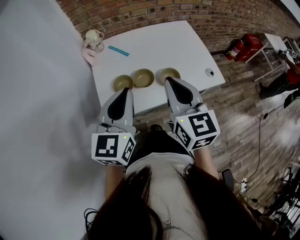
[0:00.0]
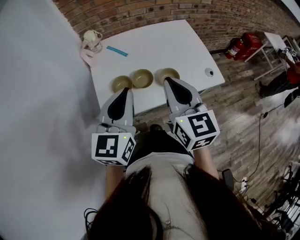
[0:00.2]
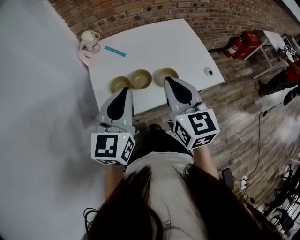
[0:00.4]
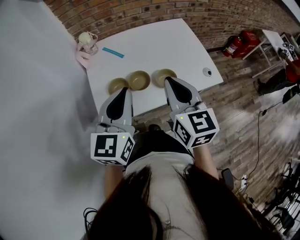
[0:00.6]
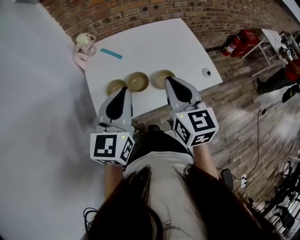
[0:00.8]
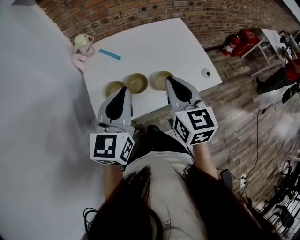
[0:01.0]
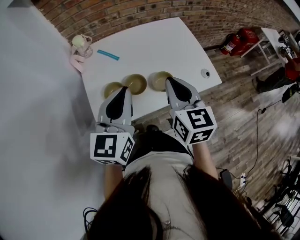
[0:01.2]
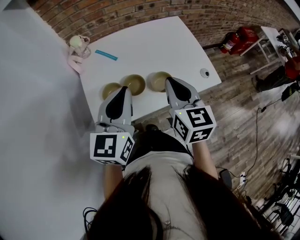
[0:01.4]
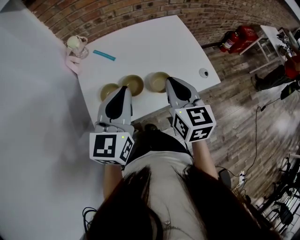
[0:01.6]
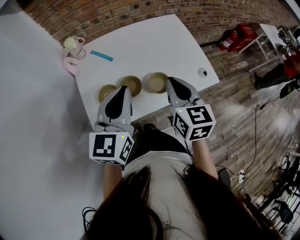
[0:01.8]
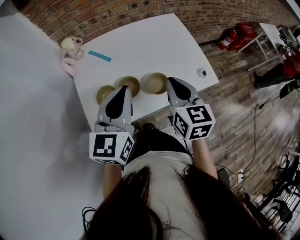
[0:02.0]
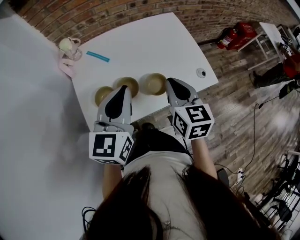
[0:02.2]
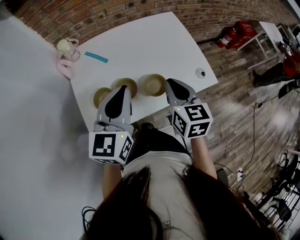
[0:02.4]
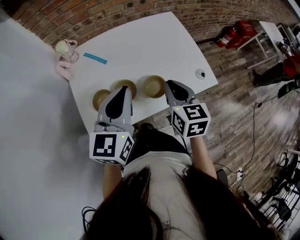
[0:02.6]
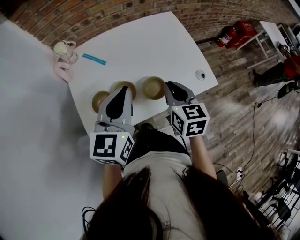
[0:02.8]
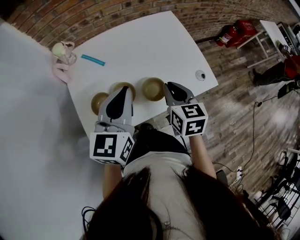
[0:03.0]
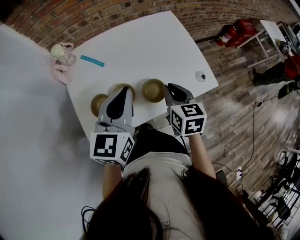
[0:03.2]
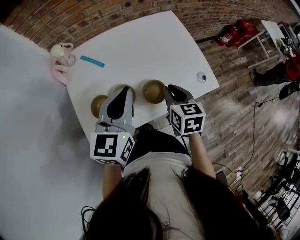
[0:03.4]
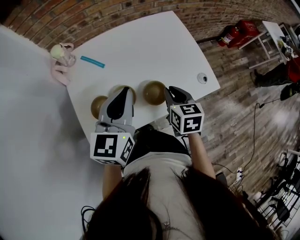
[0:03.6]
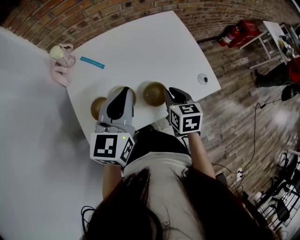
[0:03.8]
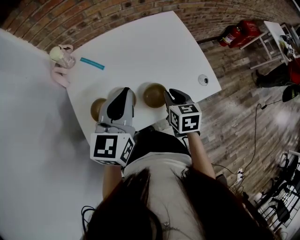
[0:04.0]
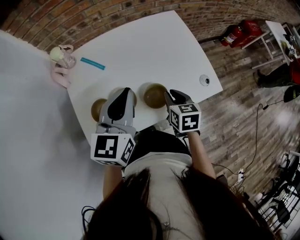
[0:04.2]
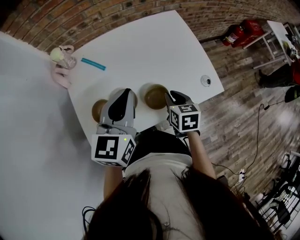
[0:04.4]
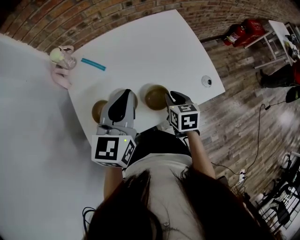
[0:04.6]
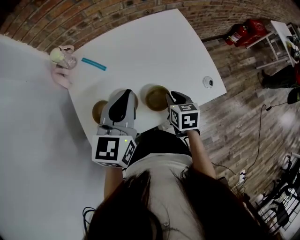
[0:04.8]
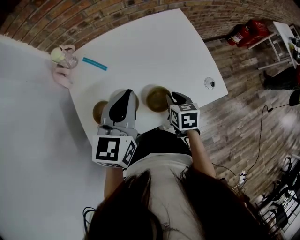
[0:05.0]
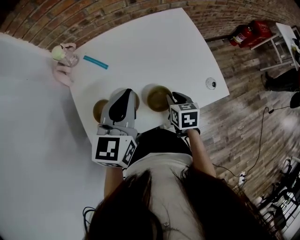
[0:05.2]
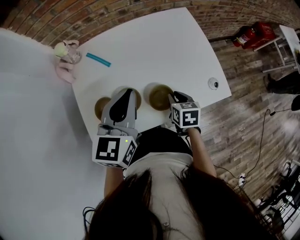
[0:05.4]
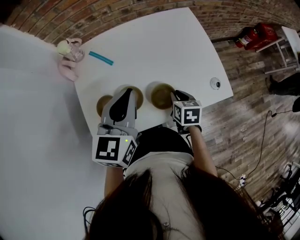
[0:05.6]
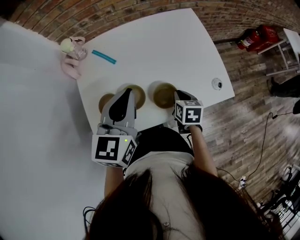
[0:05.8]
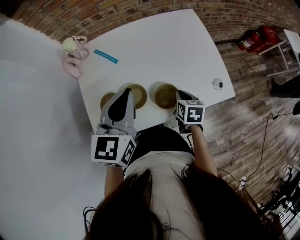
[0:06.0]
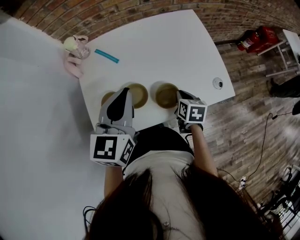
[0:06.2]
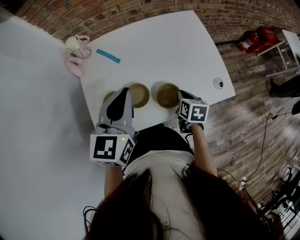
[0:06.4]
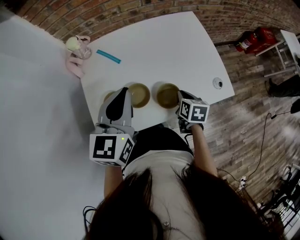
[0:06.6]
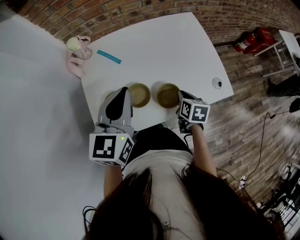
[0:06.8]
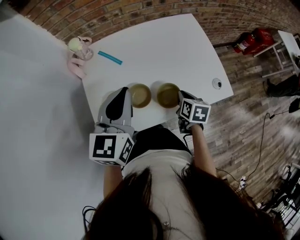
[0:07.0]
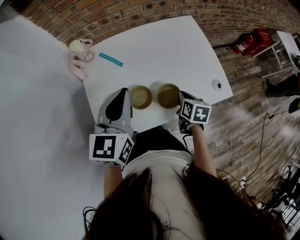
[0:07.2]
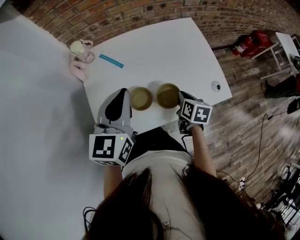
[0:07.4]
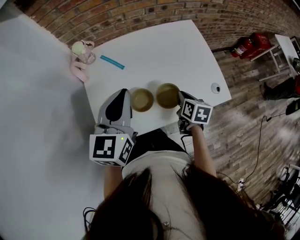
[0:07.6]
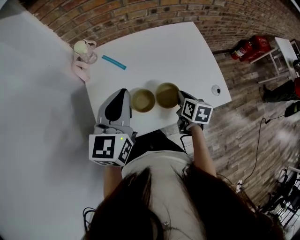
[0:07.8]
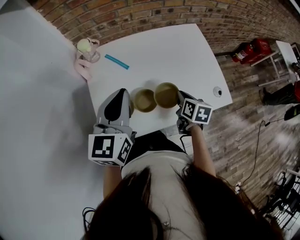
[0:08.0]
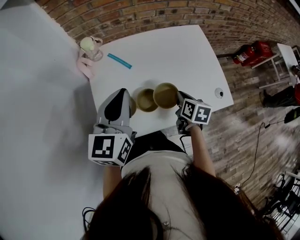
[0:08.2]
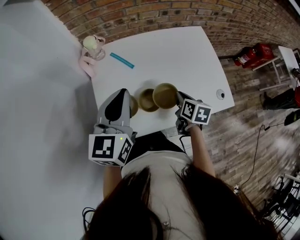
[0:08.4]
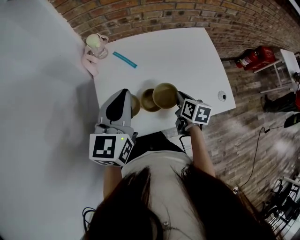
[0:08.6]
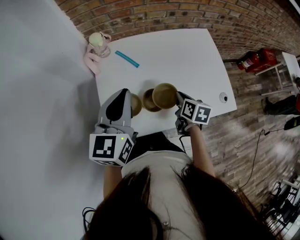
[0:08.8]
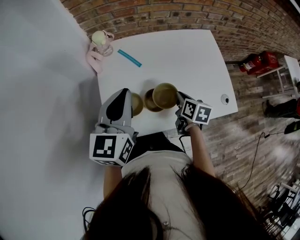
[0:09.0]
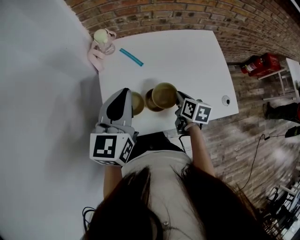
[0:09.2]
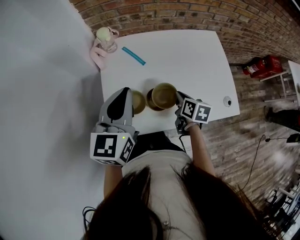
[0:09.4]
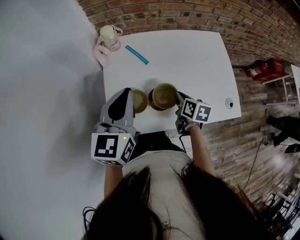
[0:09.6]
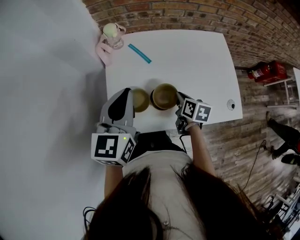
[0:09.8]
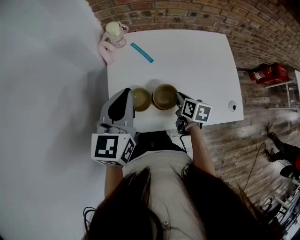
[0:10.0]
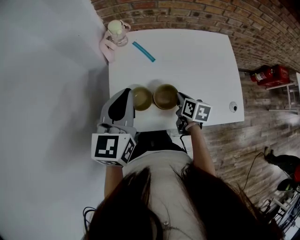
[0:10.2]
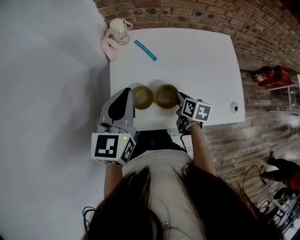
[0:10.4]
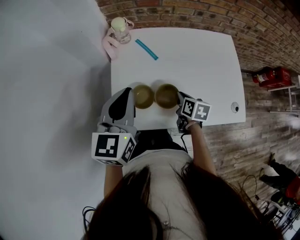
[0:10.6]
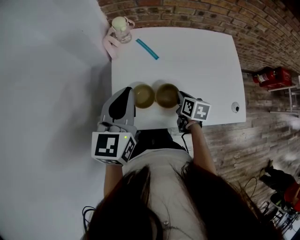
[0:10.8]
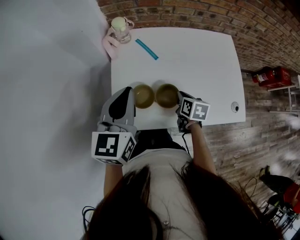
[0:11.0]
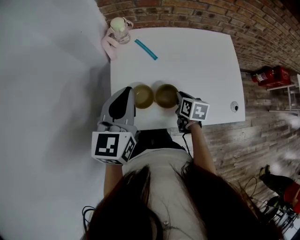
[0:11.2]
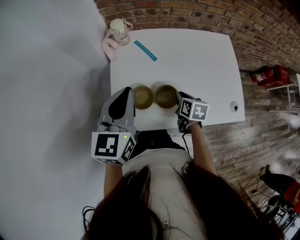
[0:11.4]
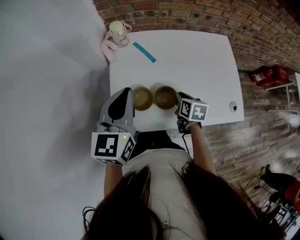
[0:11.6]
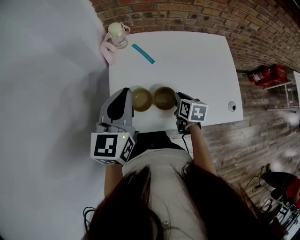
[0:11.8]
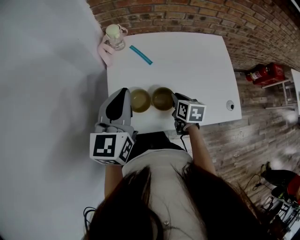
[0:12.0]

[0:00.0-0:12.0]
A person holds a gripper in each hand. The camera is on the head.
0:00.0 to 0:01.6: The left gripper goes approximately 10 cm forward. The right gripper goes approximately 10 cm forward, downward and to the right.
0:01.6 to 0:03.0: The left gripper is displaced forward by about 5 cm, while the right gripper heads downward and forward, covering about 10 cm.
0:03.0 to 0:04.4: The right gripper shifts approximately 10 cm downward.
0:04.4 to 0:06.0: The right gripper is displaced downward by roughly 5 cm.
0:06.0 to 0:07.6: The left gripper moves to the left, about 5 cm, while the right gripper goes about 5 cm upward.
0:07.6 to 0:09.0: The two grippers go about 10 cm to the left.
0:09.0 to 0:10.4: The right gripper shifts by approximately 5 cm.
0:10.4 to 0:12.0: The grippers make only small movements.

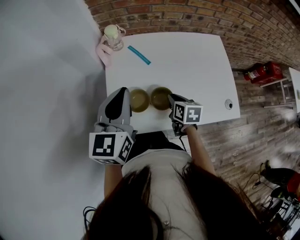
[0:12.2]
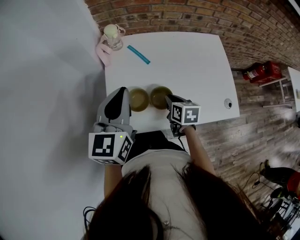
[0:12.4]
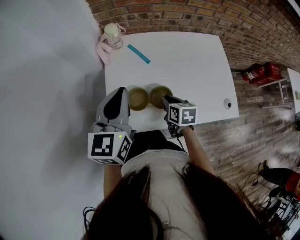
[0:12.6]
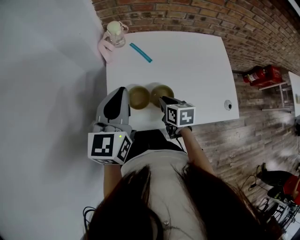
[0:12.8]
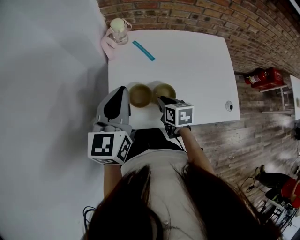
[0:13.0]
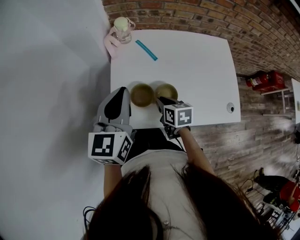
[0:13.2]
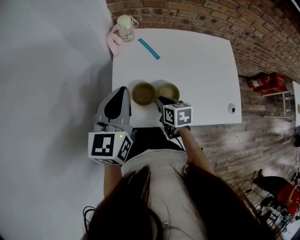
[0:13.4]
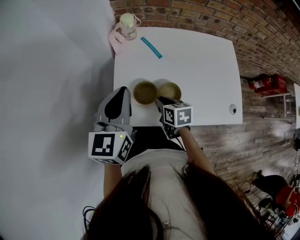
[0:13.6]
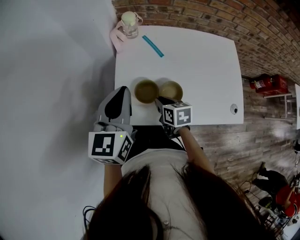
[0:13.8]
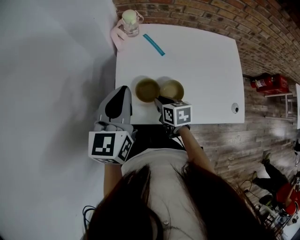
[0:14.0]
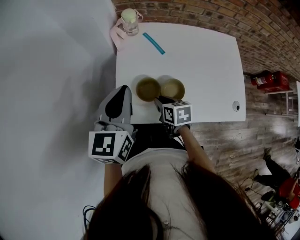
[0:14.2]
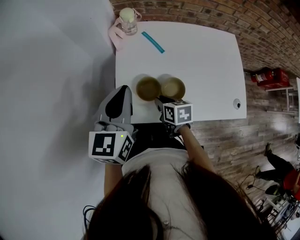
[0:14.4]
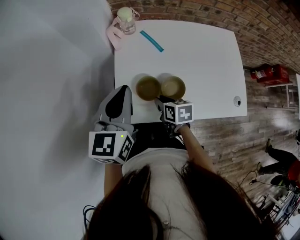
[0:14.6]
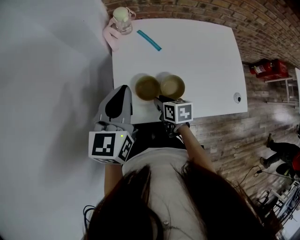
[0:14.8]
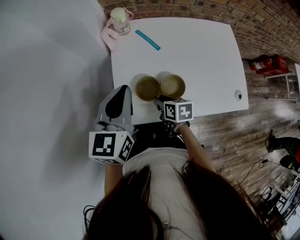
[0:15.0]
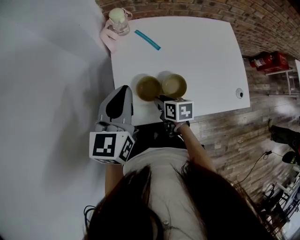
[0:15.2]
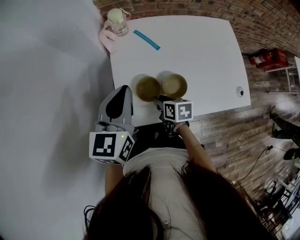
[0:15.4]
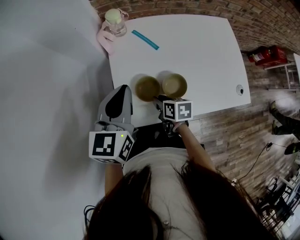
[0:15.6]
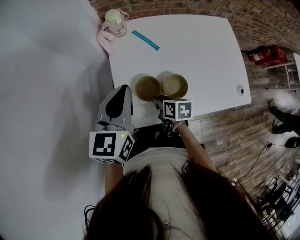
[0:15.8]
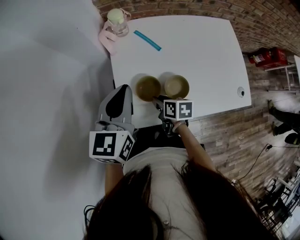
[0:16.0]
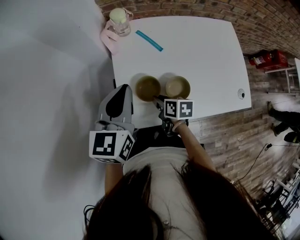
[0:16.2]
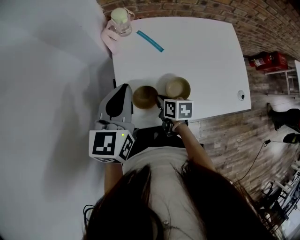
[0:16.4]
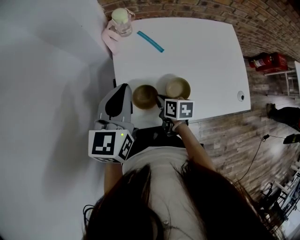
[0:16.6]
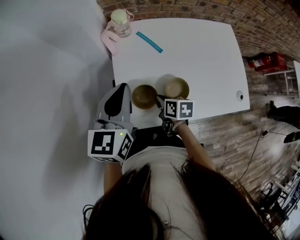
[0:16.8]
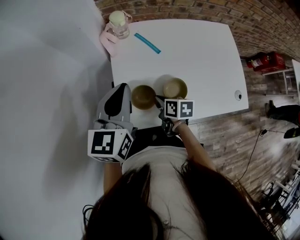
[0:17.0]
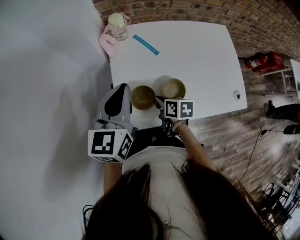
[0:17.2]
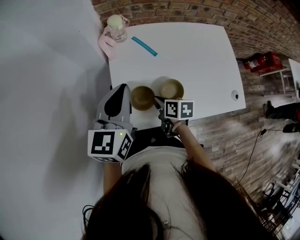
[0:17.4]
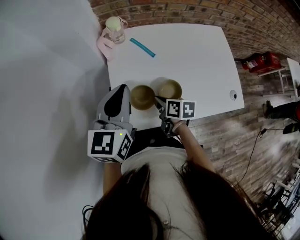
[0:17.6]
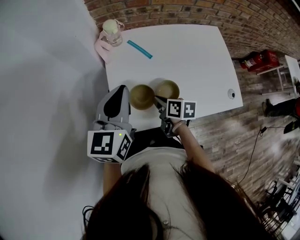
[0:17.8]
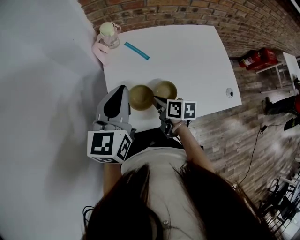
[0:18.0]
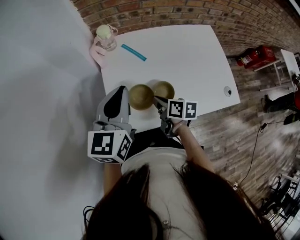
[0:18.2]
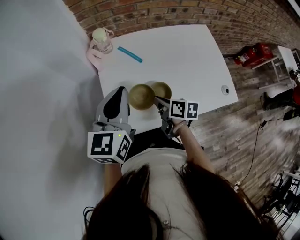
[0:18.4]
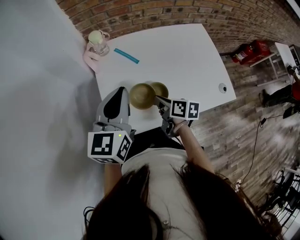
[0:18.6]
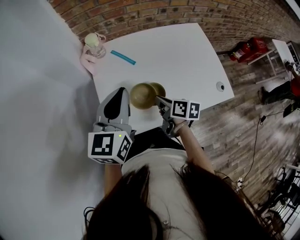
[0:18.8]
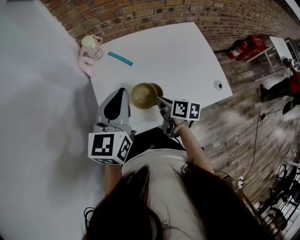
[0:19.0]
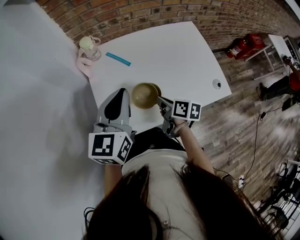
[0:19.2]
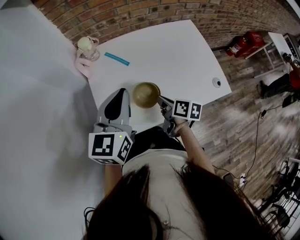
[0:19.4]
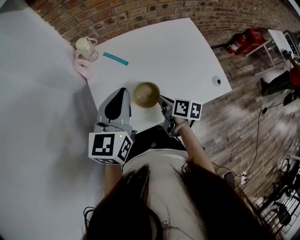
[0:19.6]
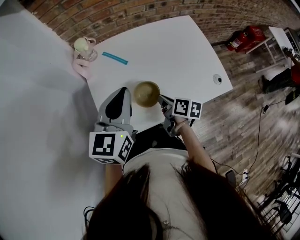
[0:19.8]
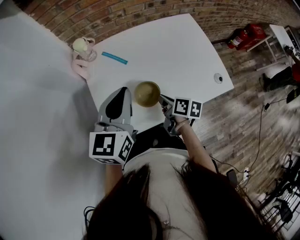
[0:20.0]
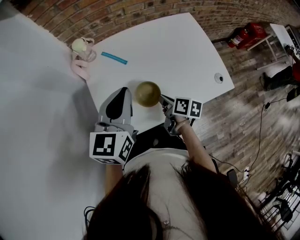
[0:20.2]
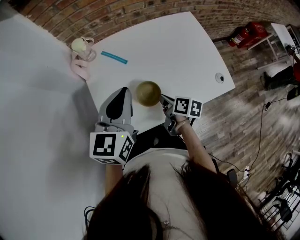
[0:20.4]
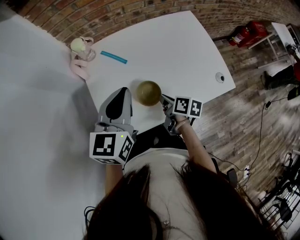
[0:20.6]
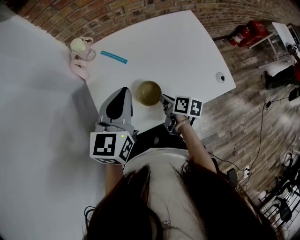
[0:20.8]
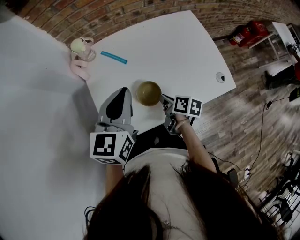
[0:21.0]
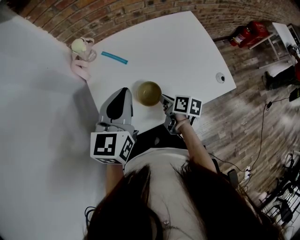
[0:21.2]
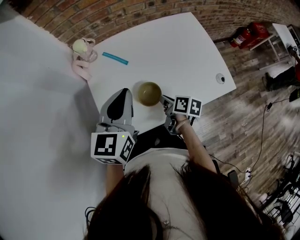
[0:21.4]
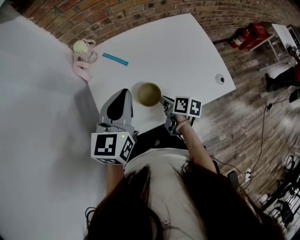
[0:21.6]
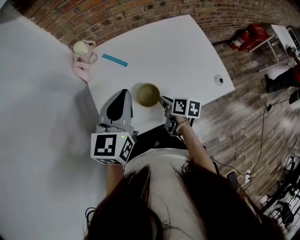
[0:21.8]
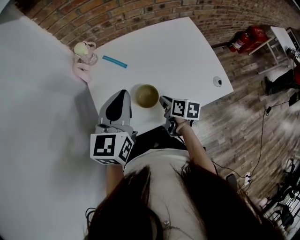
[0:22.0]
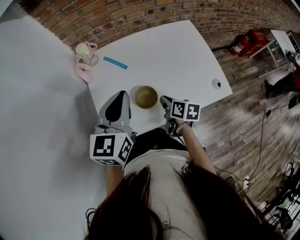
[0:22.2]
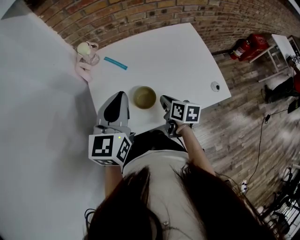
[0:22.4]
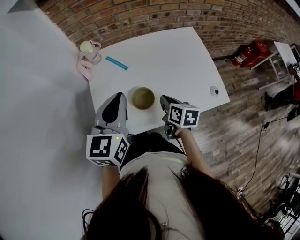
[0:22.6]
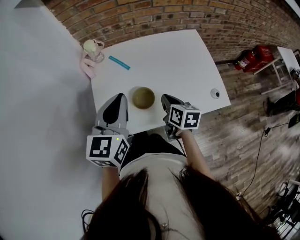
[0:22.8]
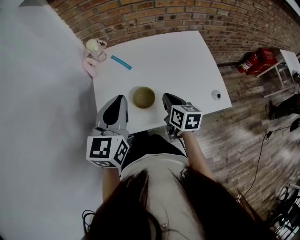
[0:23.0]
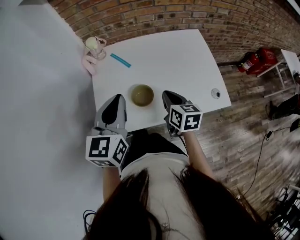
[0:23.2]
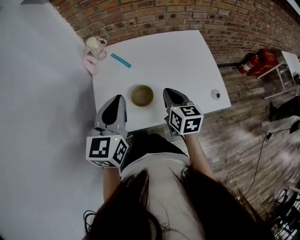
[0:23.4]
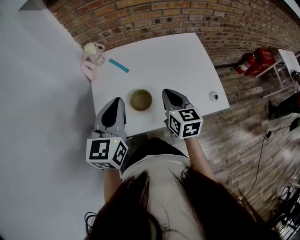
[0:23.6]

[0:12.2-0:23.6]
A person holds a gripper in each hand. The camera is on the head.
0:12.2 to 0:13.6: The right gripper heads to the left, covering approximately 10 cm.
0:13.6 to 0:15.0: The grippers make only small movements.
0:15.0 to 0:16.4: The right gripper closes up.
0:16.4 to 0:17.8: The right gripper ends up roughly 5 cm from where it was.
0:17.8 to 0:19.4: The grippers both shift to the right by about 10 cm.
0:19.4 to 0:22.2: The grippers move only a little.
0:22.2 to 0:23.6: The right gripper is displaced upward by approximately 10 cm, and turns by about 40 degrees.

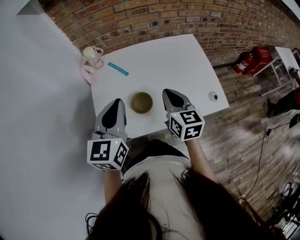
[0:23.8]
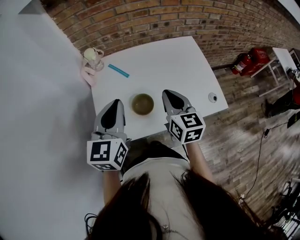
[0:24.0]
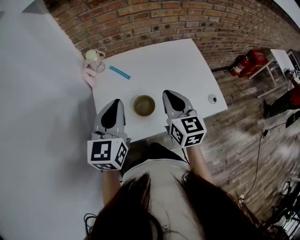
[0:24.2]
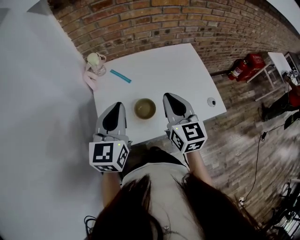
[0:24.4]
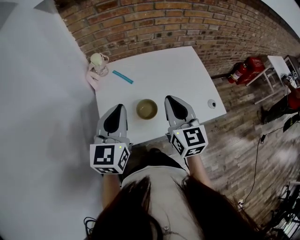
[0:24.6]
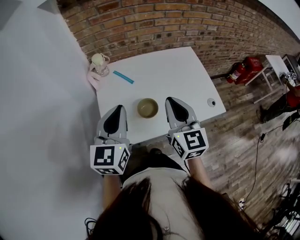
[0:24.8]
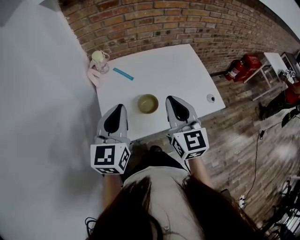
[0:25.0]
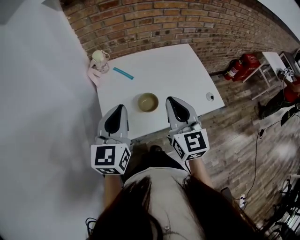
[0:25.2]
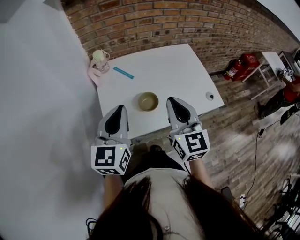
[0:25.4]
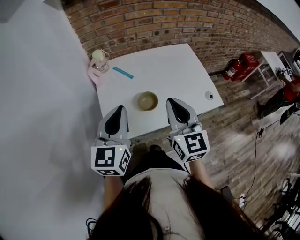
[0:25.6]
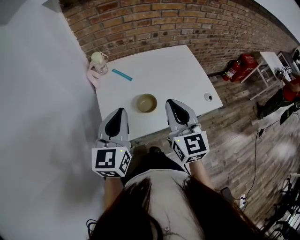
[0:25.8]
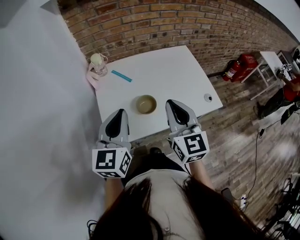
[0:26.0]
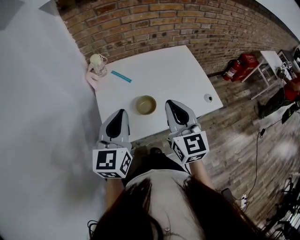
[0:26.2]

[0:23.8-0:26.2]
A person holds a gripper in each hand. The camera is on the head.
0:23.8 to 0:25.0: The left gripper is displaced to the left by some 5 cm. Meanwhile the right gripper travels upward, backward and to the left by approximately 15 cm, and swivels approximately 20 degrees.
0:25.0 to 0:26.2: The grippers make only small movements.
